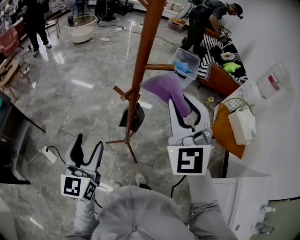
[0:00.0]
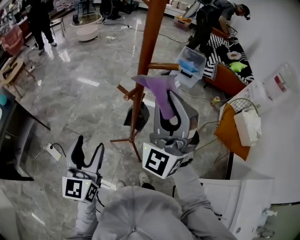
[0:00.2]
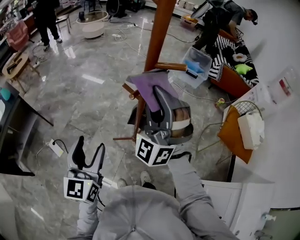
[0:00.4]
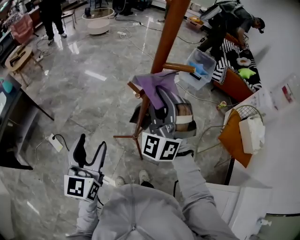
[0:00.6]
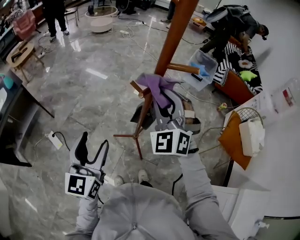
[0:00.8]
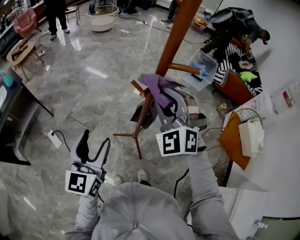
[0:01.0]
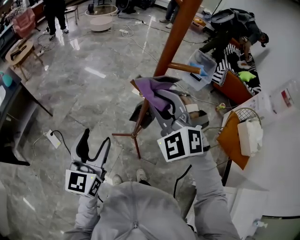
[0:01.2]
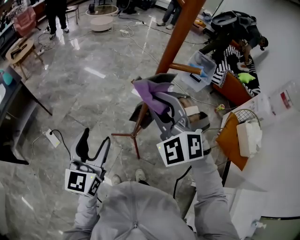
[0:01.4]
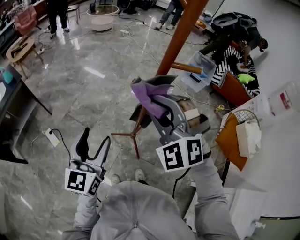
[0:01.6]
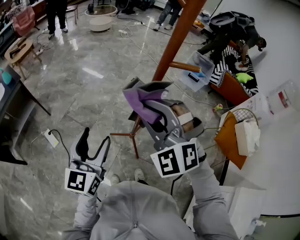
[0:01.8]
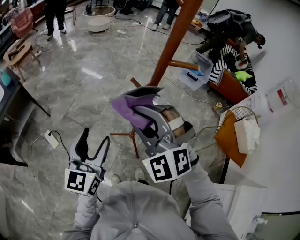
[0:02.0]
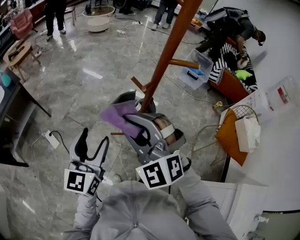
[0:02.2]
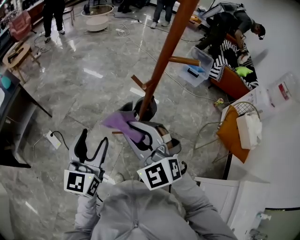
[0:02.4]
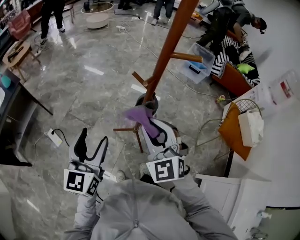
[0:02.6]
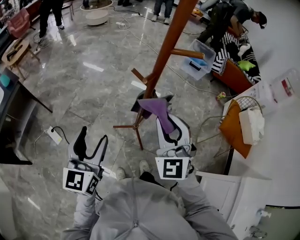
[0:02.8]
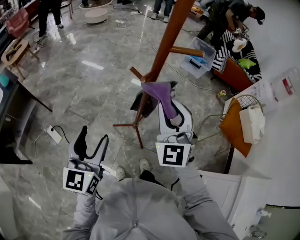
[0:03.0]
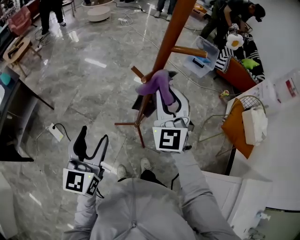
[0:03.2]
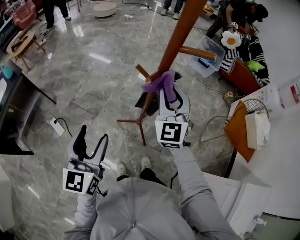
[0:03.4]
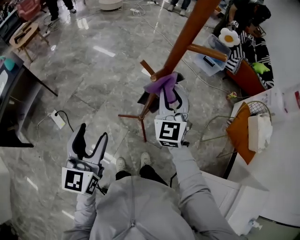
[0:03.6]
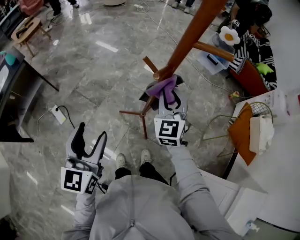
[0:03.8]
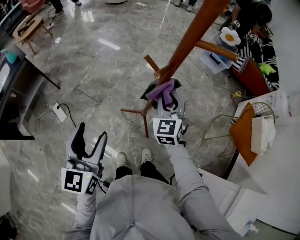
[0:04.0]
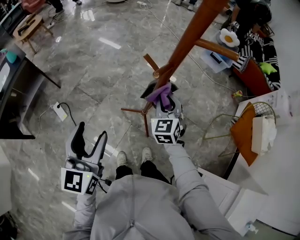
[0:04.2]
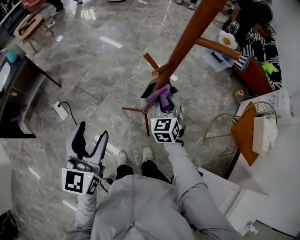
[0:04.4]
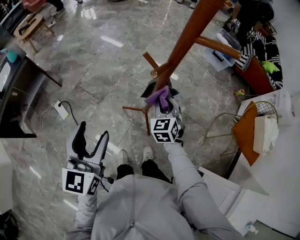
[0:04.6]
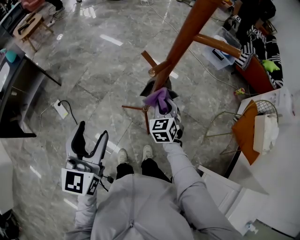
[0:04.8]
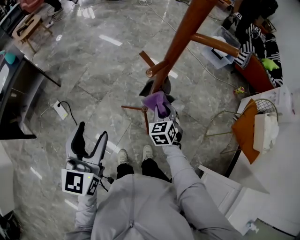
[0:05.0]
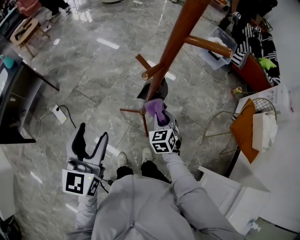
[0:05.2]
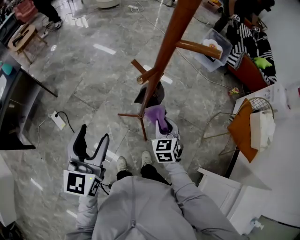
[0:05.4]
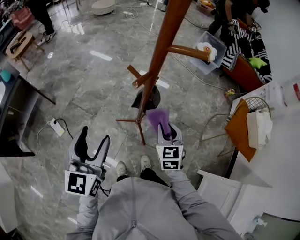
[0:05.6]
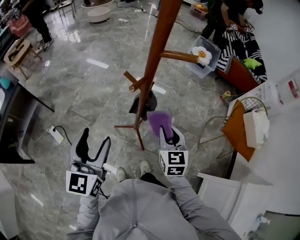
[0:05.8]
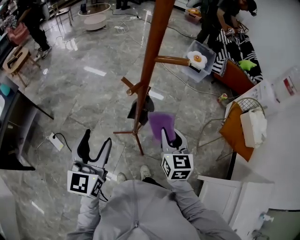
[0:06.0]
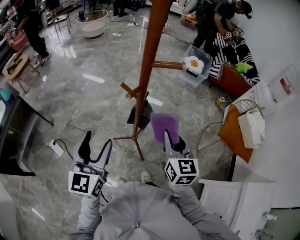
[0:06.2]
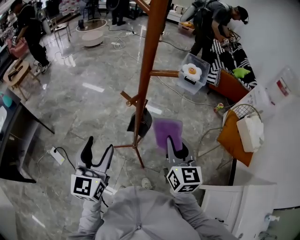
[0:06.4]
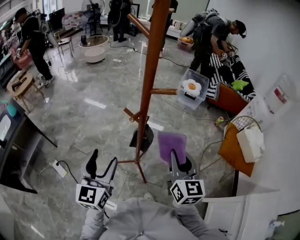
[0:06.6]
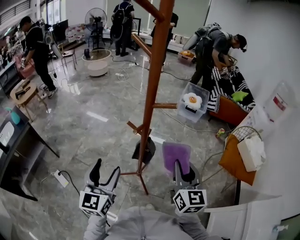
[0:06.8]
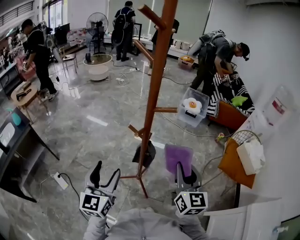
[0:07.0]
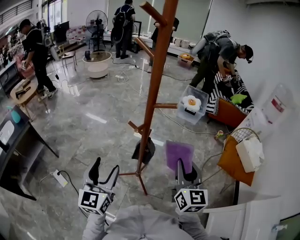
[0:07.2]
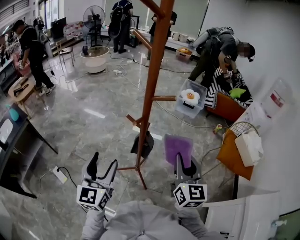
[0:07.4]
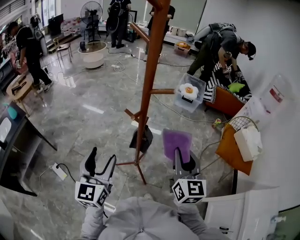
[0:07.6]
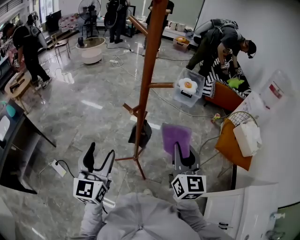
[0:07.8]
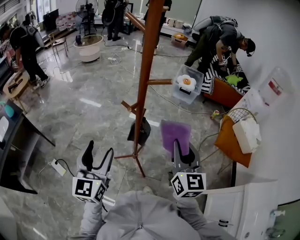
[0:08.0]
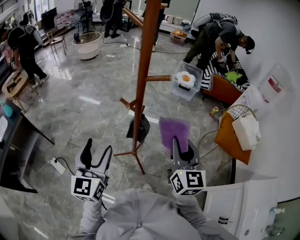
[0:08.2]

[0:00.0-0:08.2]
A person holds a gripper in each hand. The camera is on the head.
0:00.0 to 0:01.6: The right gripper shifts about 15 cm to the left and downward, and changes its angle by roughly 40 degrees.
0:01.6 to 0:03.2: The right gripper moves to the right, some 5 cm, and turns by roughly 40 degrees.
0:03.2 to 0:05.0: The right gripper travels downward by approximately 30 cm, and points its fingers about 40 degrees further downward.
0:05.0 to 0:06.6: The left gripper changes place by about 5 cm. Meanwhile the right gripper moves upward, roughly 25 cm, and points its fingers roughly 30 degrees further upward.
0:06.6 to 0:08.2: The grippers move only a little.

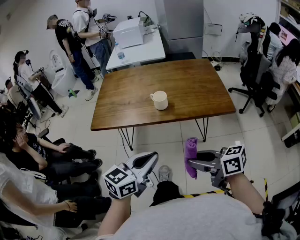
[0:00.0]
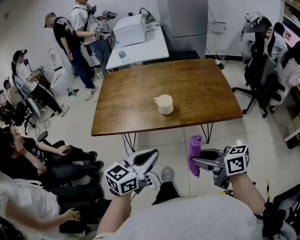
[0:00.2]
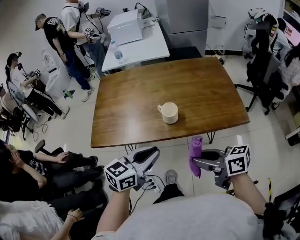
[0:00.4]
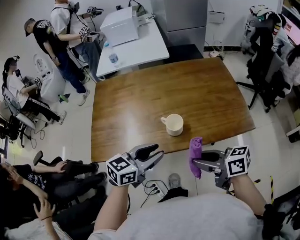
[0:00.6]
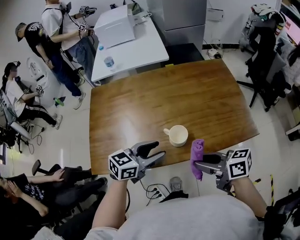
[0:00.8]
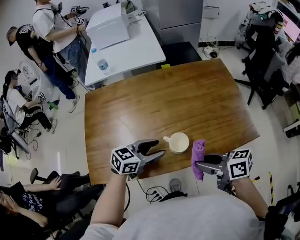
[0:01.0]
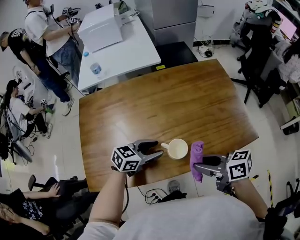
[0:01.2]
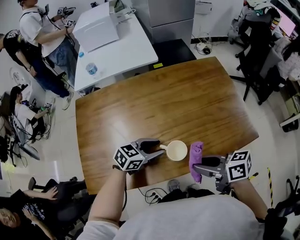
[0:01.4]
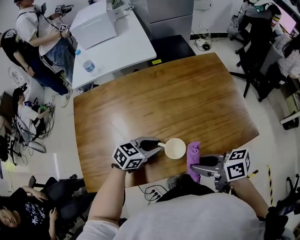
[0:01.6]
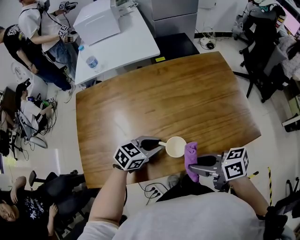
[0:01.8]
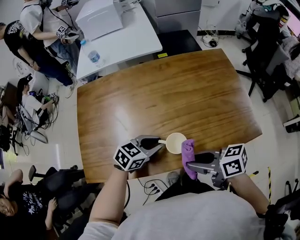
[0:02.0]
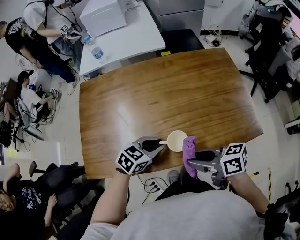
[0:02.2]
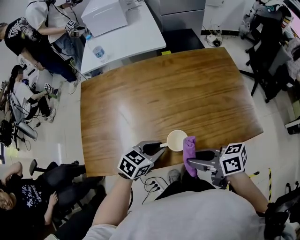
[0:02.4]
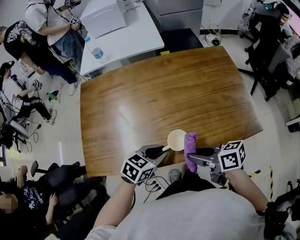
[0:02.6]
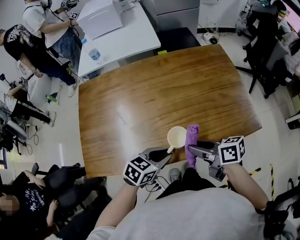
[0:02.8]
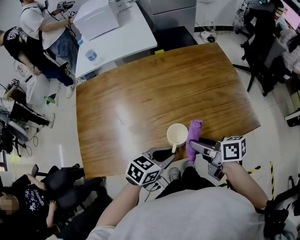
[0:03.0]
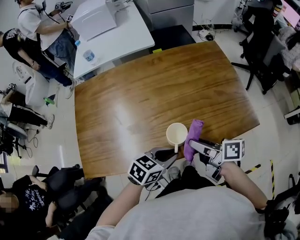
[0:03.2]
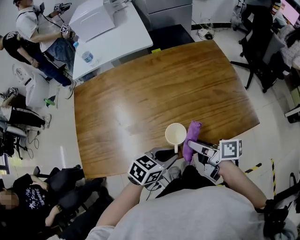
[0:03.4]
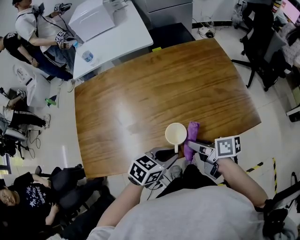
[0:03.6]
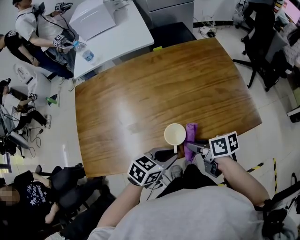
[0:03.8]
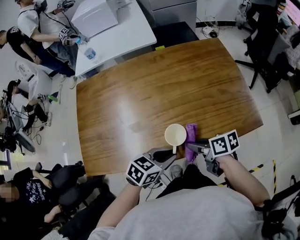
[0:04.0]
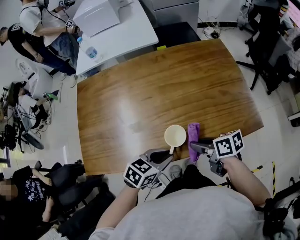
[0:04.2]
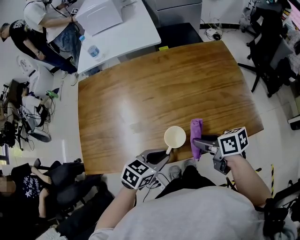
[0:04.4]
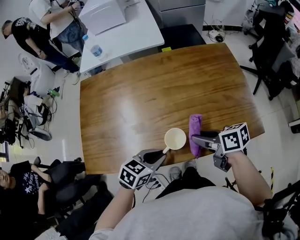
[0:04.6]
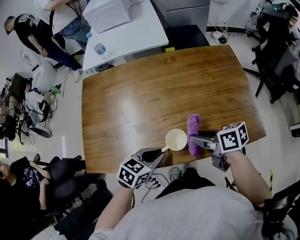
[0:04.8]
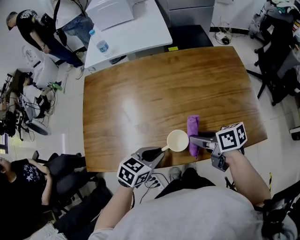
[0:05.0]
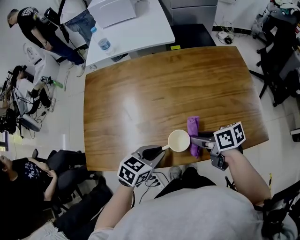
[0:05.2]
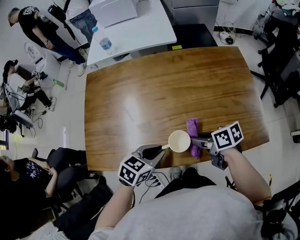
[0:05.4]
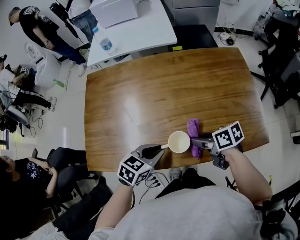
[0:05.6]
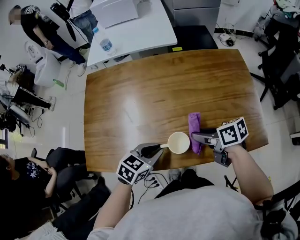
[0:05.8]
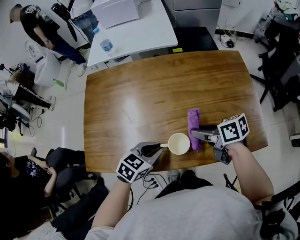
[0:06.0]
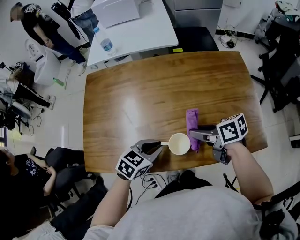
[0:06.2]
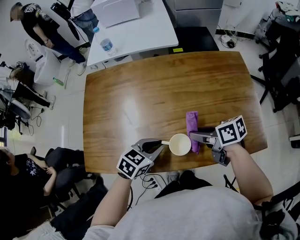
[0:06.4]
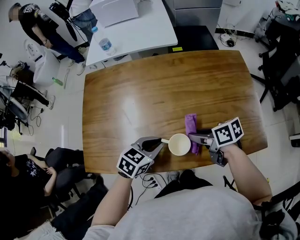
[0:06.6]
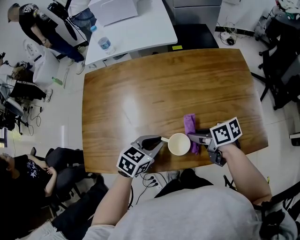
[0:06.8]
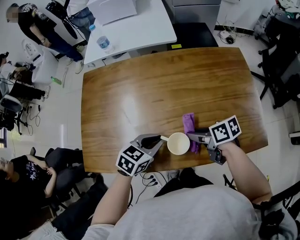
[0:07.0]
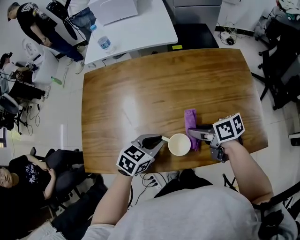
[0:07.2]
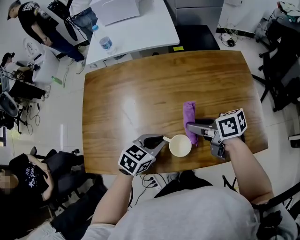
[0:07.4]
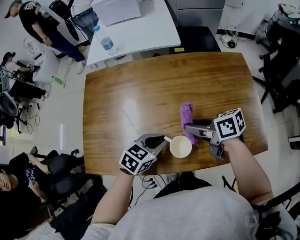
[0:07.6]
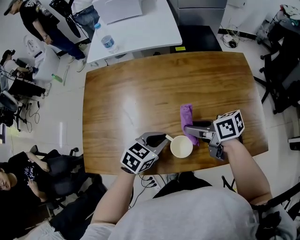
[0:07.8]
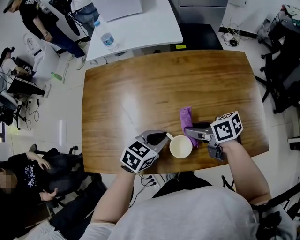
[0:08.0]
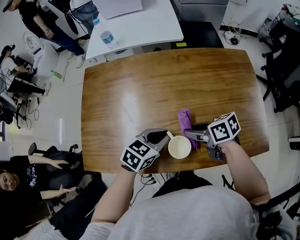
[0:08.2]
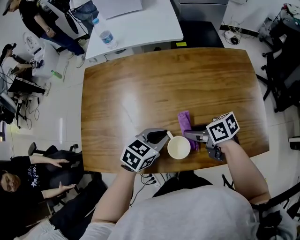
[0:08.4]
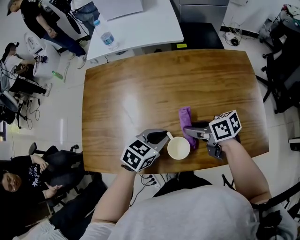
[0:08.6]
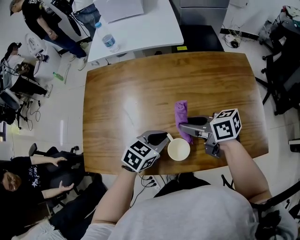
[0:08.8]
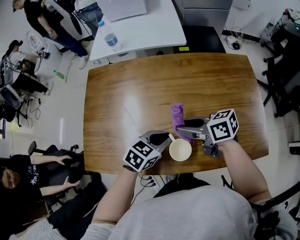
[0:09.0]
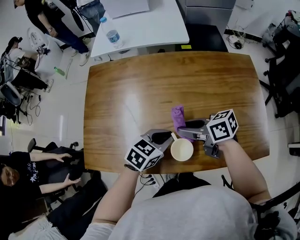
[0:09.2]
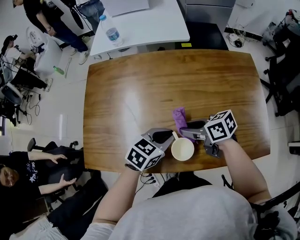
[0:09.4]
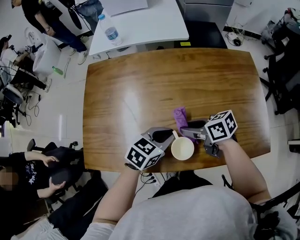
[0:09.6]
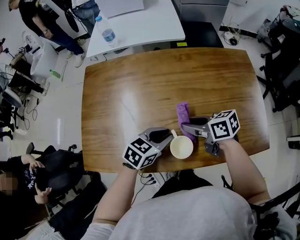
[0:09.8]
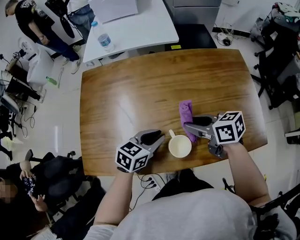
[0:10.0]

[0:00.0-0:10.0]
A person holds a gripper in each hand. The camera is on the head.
0:00.0 to 0:01.4: The left gripper changes place by about 50 cm, rotates about 40 degrees, and opens up, while the right gripper shifts by approximately 35 cm.
0:01.4 to 0:02.8: The left gripper ends up roughly 10 cm from where it was, and closes its fingers.
0:02.8 to 0:04.2: The right gripper travels downward by roughly 5 cm.
0:04.2 to 0:05.8: The right gripper moves about 10 cm, while the left gripper shifts by some 10 cm.
0:05.8 to 0:07.2: The grippers make only small movements.
0:07.2 to 0:08.6: The grippers make only small movements.
0:08.6 to 0:10.0: The right gripper goes up and down, about 5 cm each way, reversing 2 times.

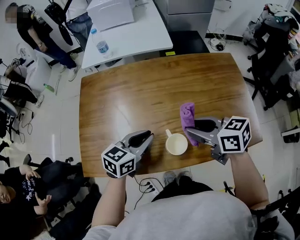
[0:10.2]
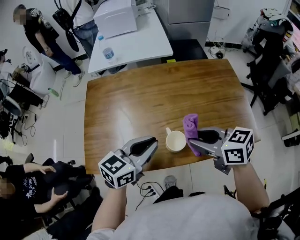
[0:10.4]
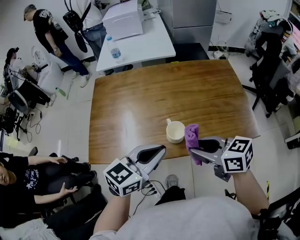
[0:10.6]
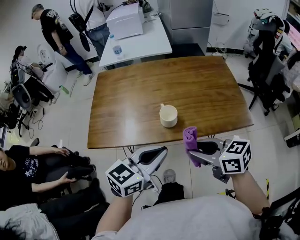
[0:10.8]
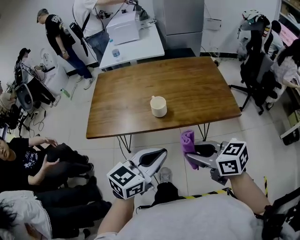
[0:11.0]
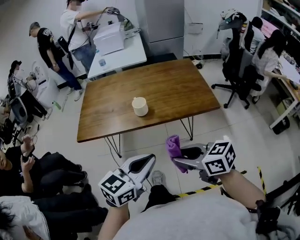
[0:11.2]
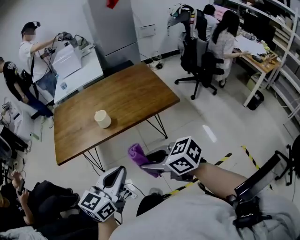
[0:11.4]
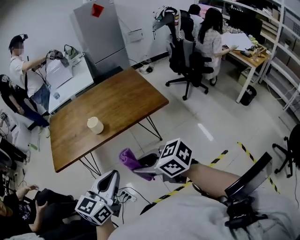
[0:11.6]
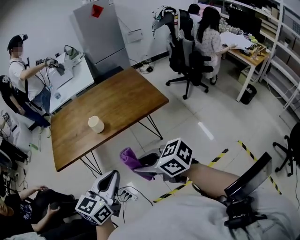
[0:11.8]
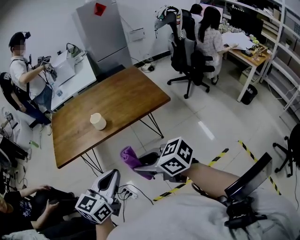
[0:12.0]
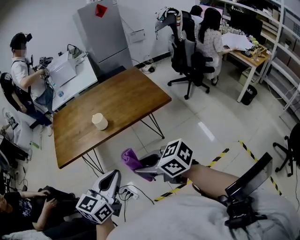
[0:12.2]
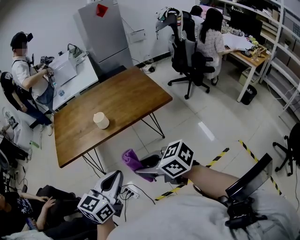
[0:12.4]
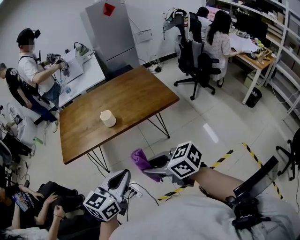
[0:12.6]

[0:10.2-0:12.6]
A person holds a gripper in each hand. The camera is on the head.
0:10.2 to 0:11.4: Both grippers are carried backward, about 50 cm.
0:11.4 to 0:12.6: Both grippers move backward, roughly 5 cm.

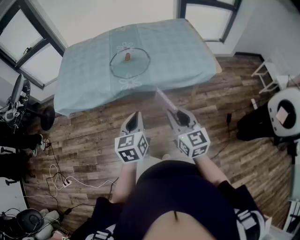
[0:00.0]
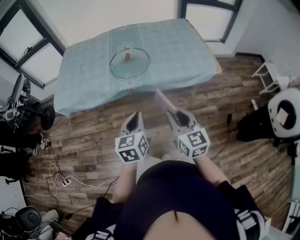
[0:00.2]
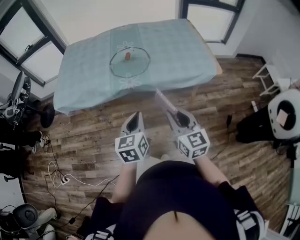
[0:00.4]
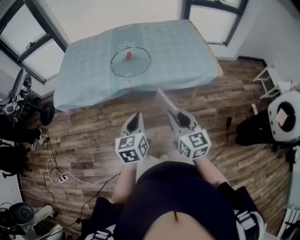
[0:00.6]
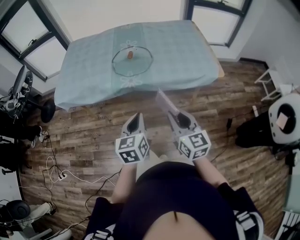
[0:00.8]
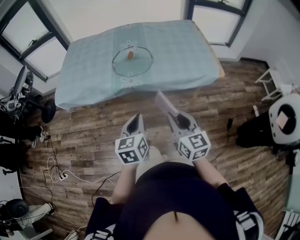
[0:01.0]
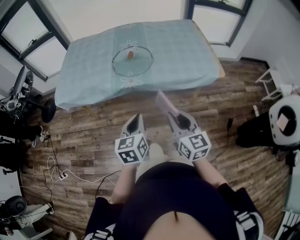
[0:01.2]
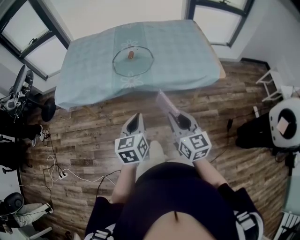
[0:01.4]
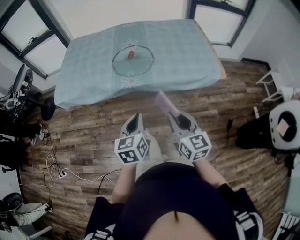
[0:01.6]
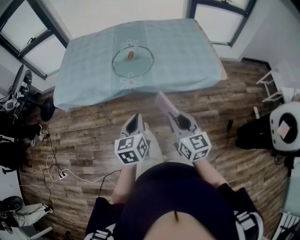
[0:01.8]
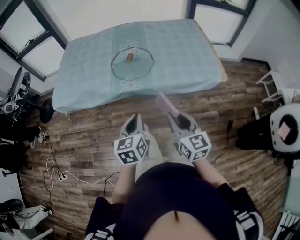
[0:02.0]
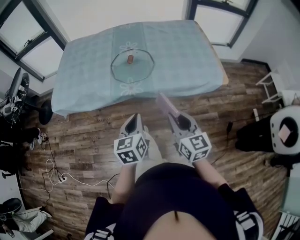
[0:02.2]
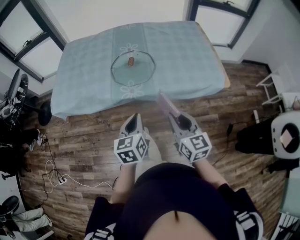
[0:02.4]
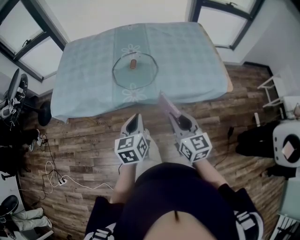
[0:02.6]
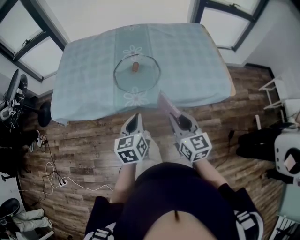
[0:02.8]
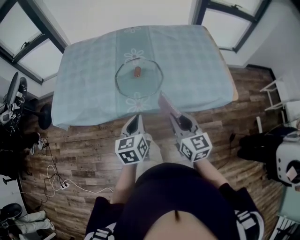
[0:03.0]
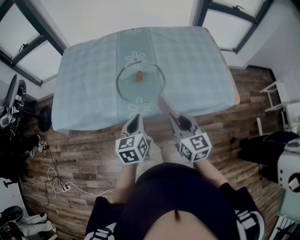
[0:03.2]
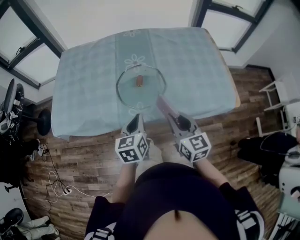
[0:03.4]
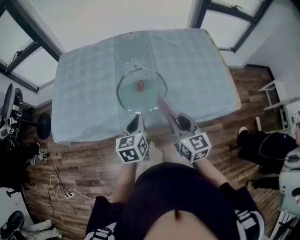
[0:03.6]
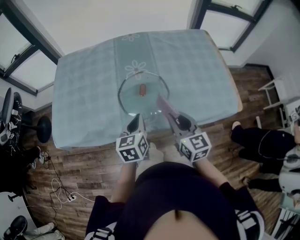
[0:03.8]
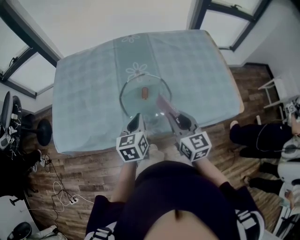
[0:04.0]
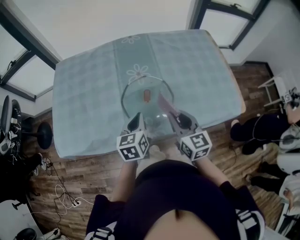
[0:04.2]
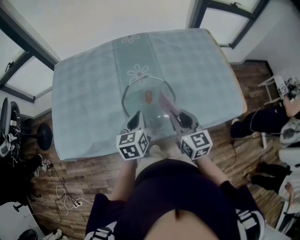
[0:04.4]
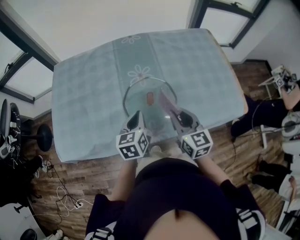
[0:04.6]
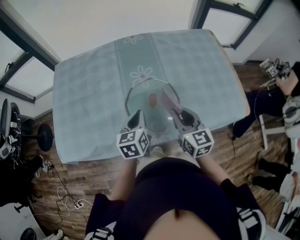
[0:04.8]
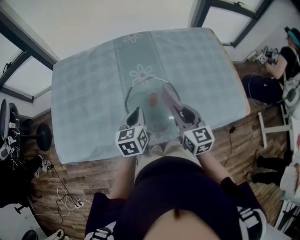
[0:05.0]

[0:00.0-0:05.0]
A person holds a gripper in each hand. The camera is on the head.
0:00.0 to 0:01.6: The grippers make only small movements.
0:01.6 to 0:03.4: The grippers both shift forward by approximately 25 cm.
0:03.4 to 0:05.0: The two grippers go some 20 cm forward.
